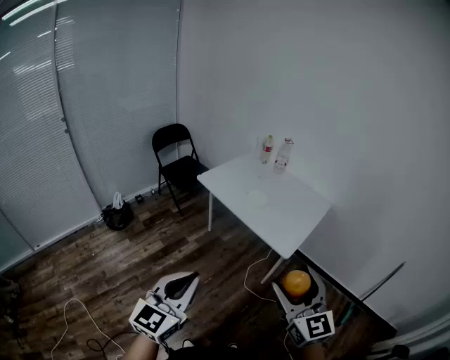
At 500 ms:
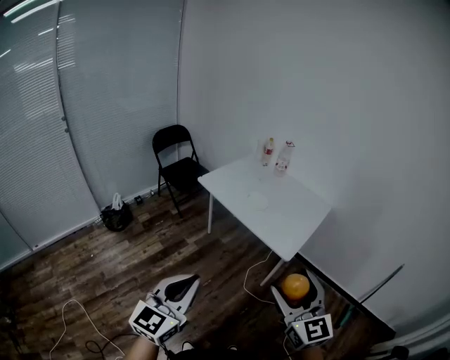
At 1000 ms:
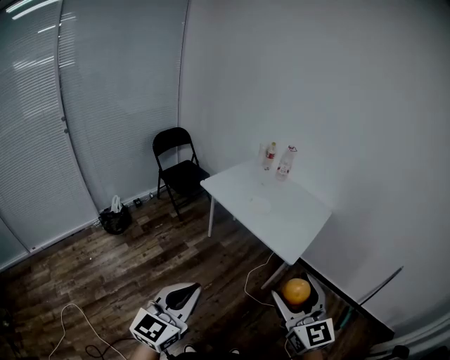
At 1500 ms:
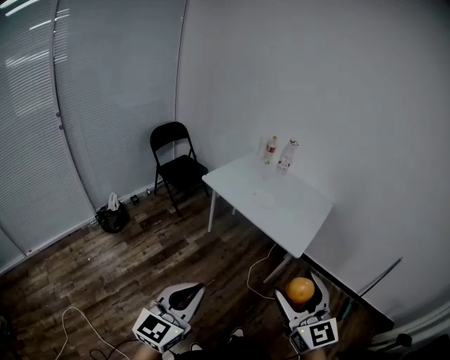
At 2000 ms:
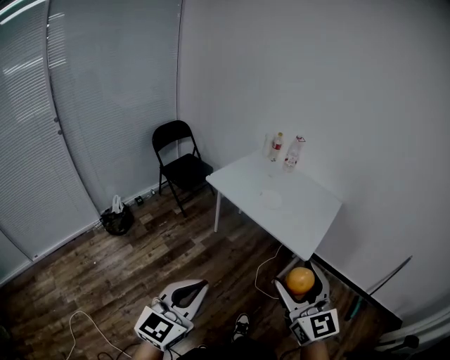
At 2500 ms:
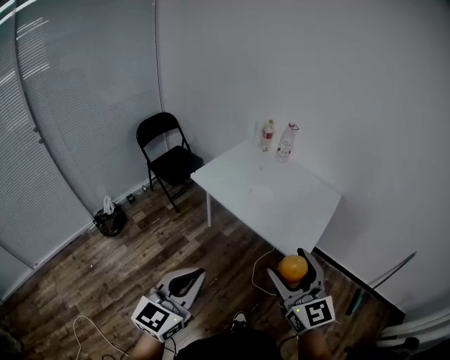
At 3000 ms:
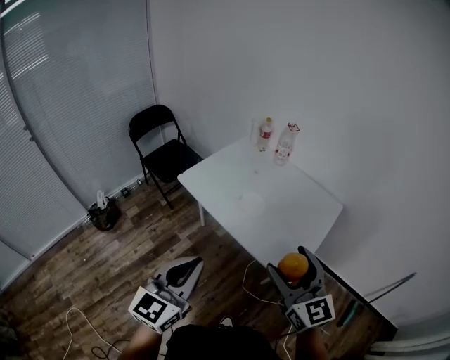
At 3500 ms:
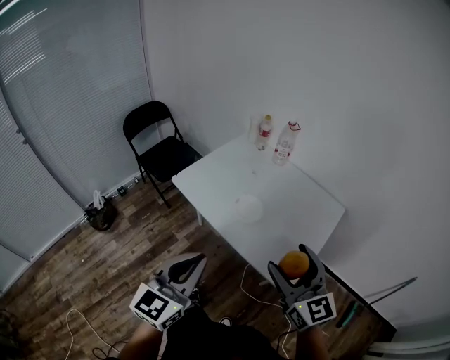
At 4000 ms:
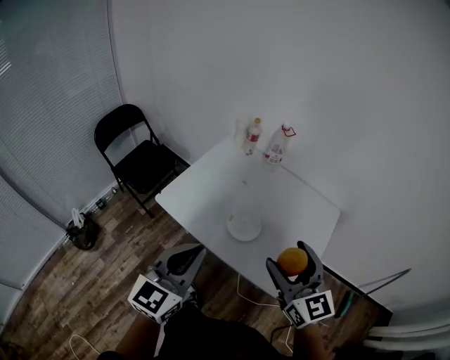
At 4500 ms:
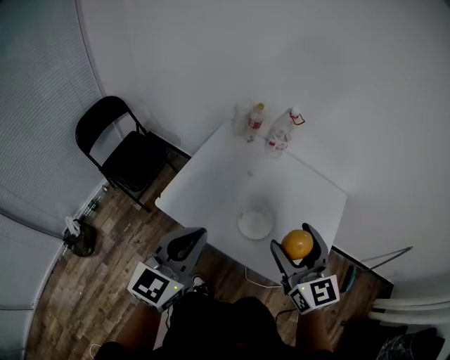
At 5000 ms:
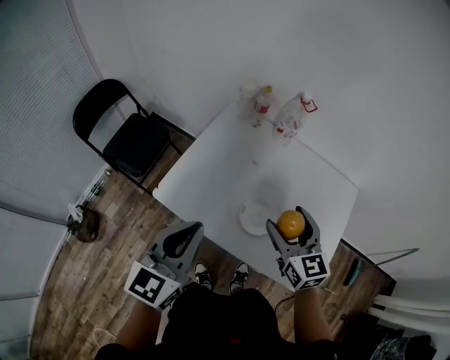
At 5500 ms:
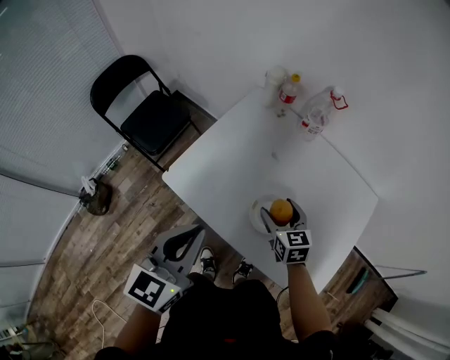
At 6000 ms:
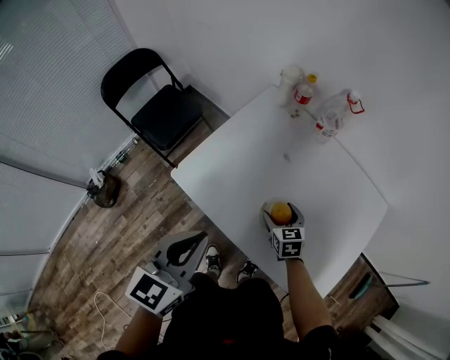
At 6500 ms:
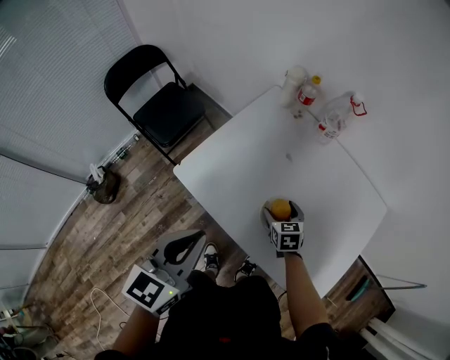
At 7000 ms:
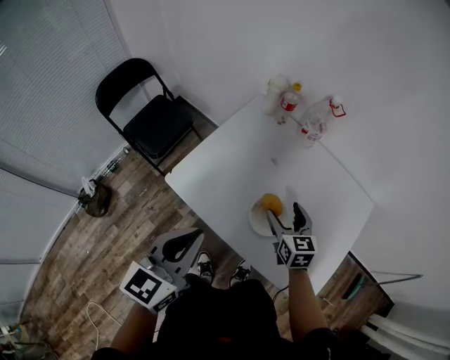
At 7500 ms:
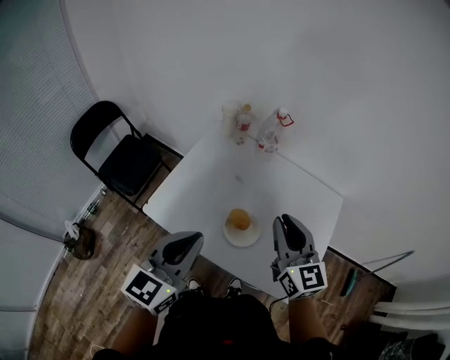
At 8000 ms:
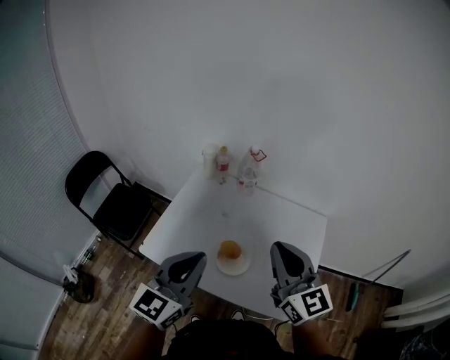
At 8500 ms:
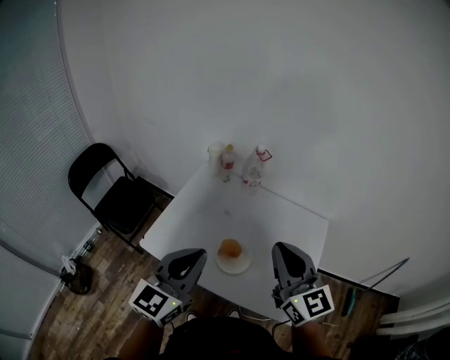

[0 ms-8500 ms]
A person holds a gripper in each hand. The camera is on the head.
0 ms to 2000 ms: The grippers both shift to the left by some 10 cm.
2000 ms to 4000 ms: The pair of grippers is taken forward, approximately 50 cm.
4000 ms to 6500 ms: The right gripper is displaced downward and forward by some 50 cm, and tips its fingers downward by roughly 40 degrees; the left gripper shifts approximately 20 cm forward, downward and to the left.
6500 ms to 8500 ms: The left gripper is displaced upward and to the right by approximately 15 cm, and rotates approximately 30 degrees, while the right gripper heads upward, covering about 40 cm, tilts its fingers roughly 50 degrees upward, and closes.

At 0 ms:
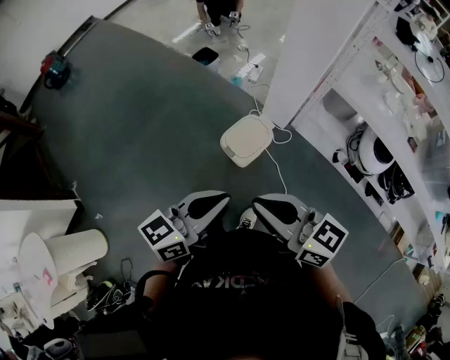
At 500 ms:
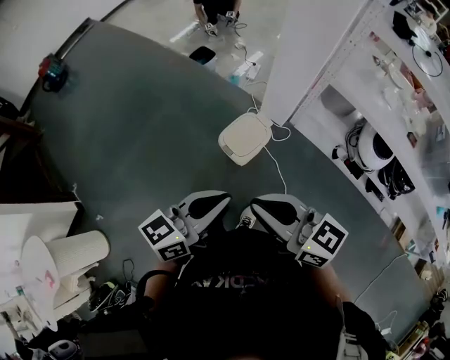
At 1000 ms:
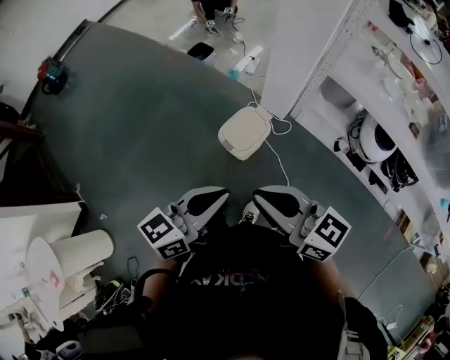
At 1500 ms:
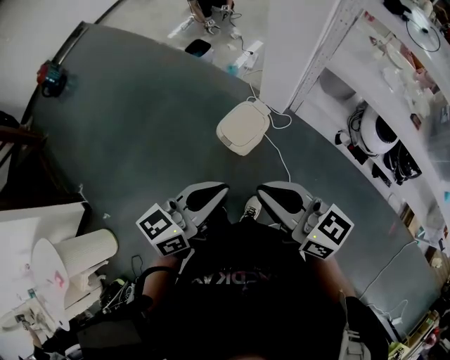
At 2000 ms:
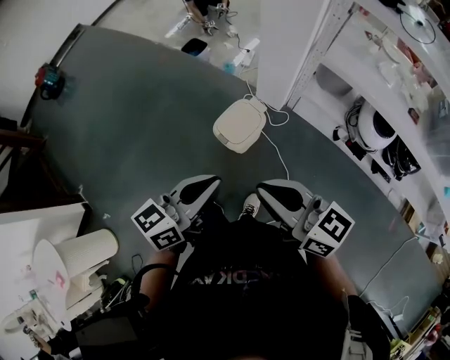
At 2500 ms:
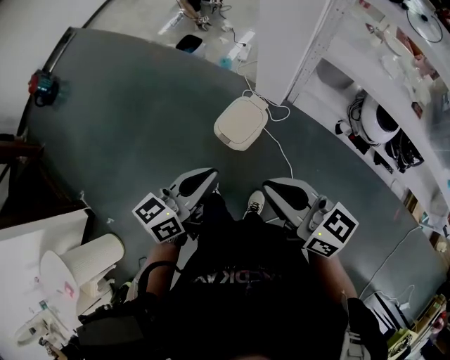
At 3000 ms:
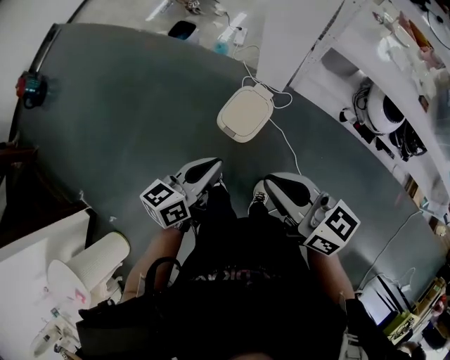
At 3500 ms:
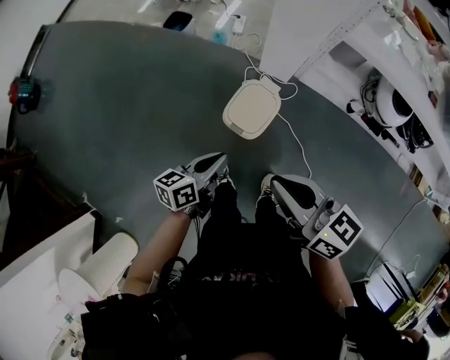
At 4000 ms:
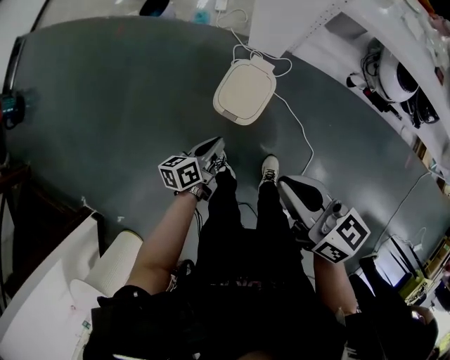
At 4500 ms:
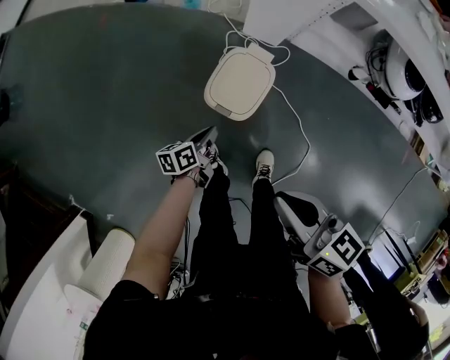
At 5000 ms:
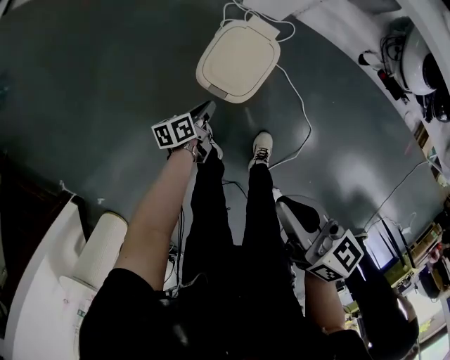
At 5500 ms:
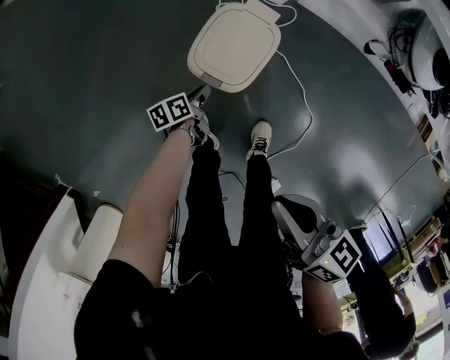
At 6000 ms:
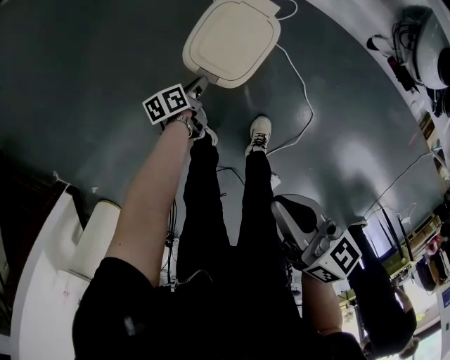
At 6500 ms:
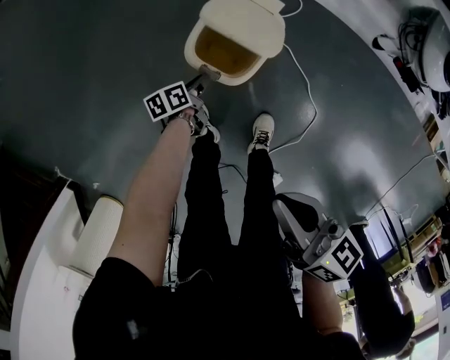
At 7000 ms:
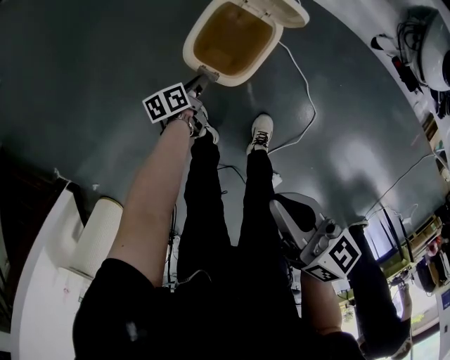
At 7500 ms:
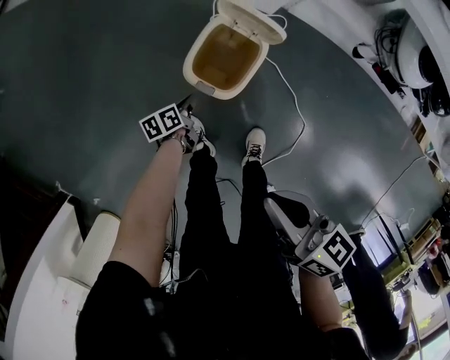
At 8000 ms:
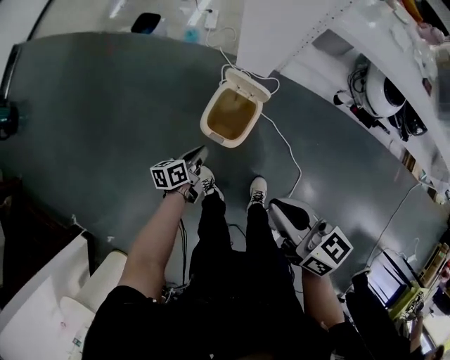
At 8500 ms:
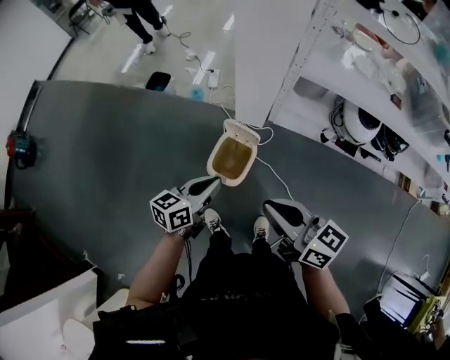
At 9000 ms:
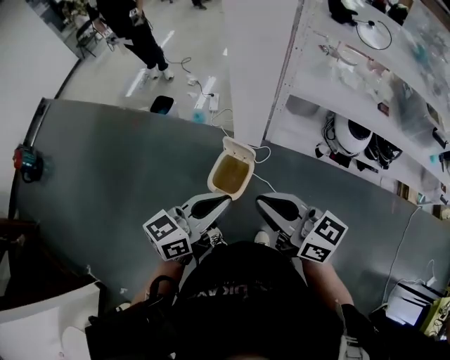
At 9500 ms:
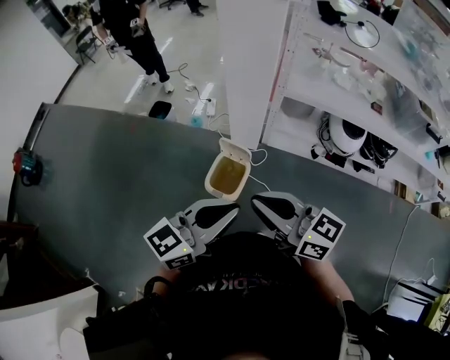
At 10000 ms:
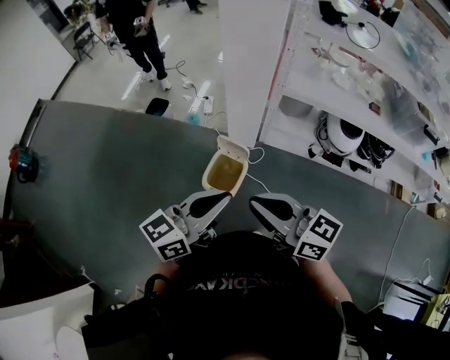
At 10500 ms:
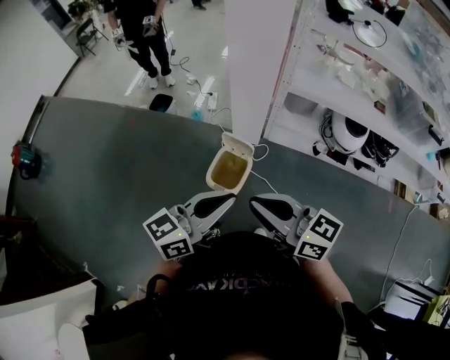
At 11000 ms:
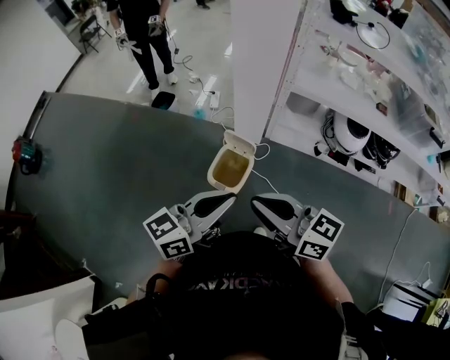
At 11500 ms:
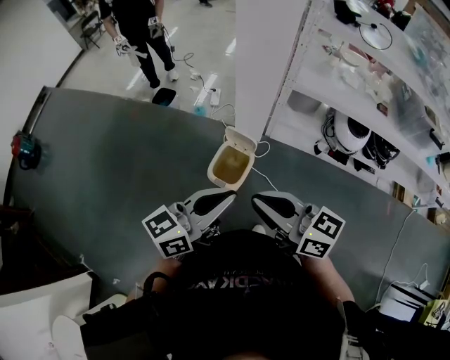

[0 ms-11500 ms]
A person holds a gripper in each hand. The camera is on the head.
0 ms to 2000 ms: The right gripper moves to the right, about 5 cm.
2000 ms to 4000 ms: The right gripper travels downward, forward and to the left by some 20 cm, and turns by about 30 degrees. The left gripper heads downward and forward, covering approximately 40 cm, and rotates roughly 30 degrees.
4000 ms to 6000 ms: The right gripper goes some 20 cm downward, while the left gripper shifts about 30 cm downward, and rotates about 30 degrees.
6000 ms to 7500 ms: The left gripper moves approximately 5 cm.
7500 ms to 9500 ms: The right gripper heads upward, covering roughly 30 cm, and swivels approximately 40 degrees. The left gripper moves upward, roughly 70 cm, and tips its fingers upward by about 40 degrees.
9500 ms to 11500 ms: The grippers stay close to where they were, moving slightly.

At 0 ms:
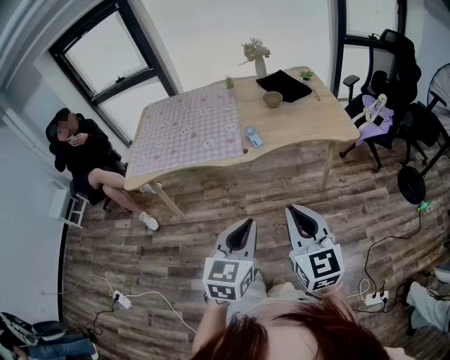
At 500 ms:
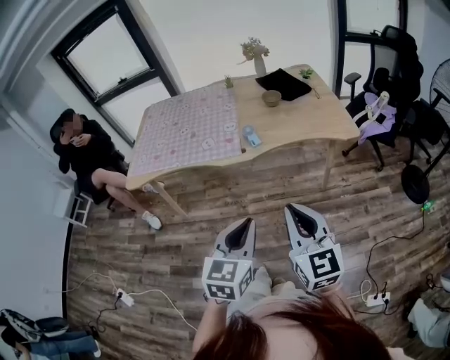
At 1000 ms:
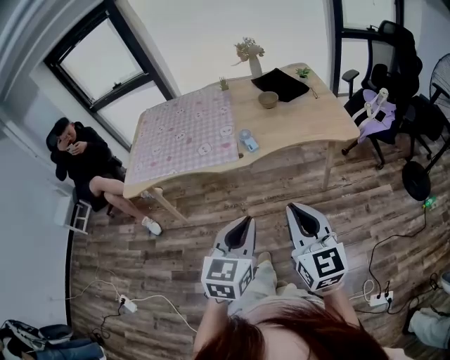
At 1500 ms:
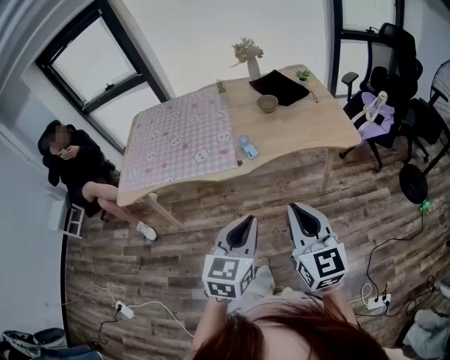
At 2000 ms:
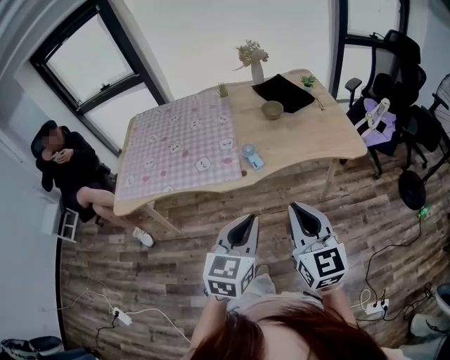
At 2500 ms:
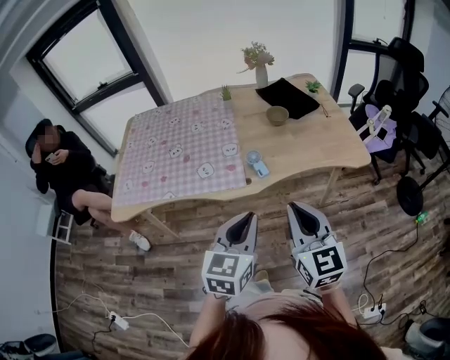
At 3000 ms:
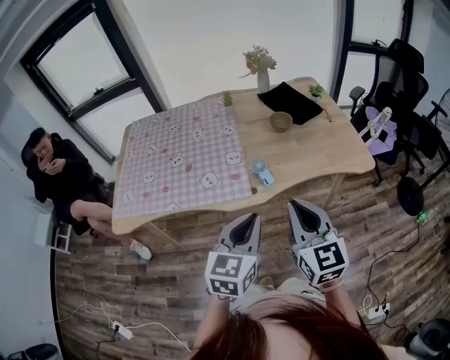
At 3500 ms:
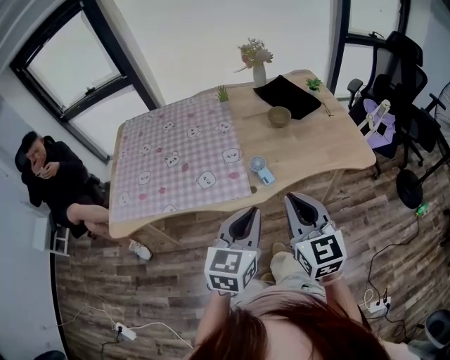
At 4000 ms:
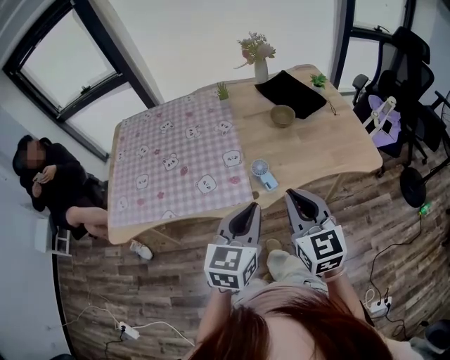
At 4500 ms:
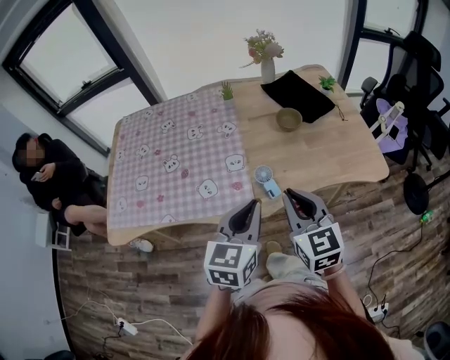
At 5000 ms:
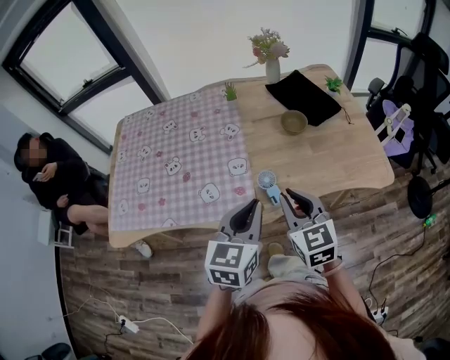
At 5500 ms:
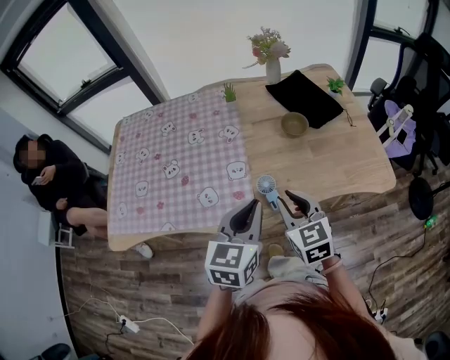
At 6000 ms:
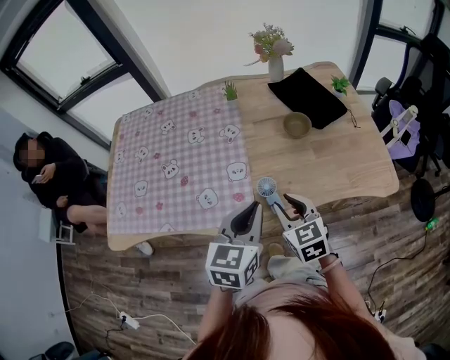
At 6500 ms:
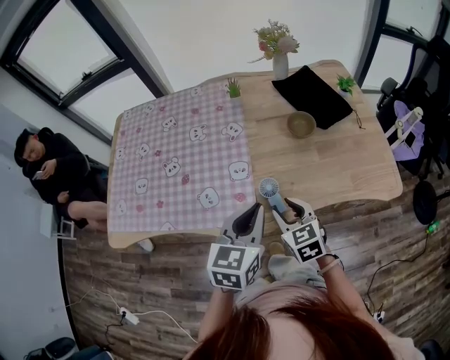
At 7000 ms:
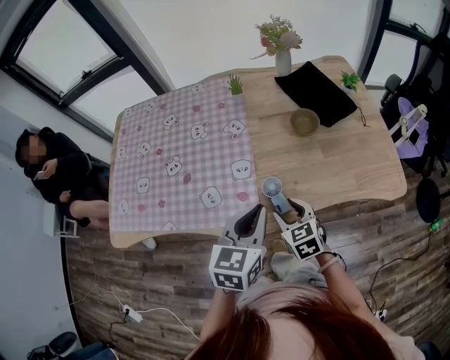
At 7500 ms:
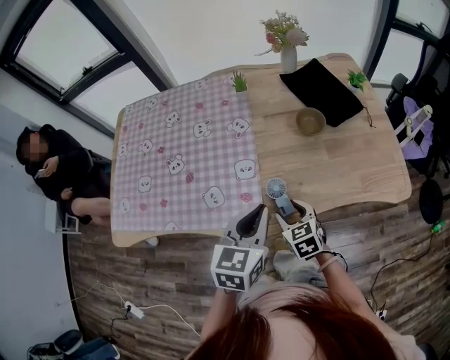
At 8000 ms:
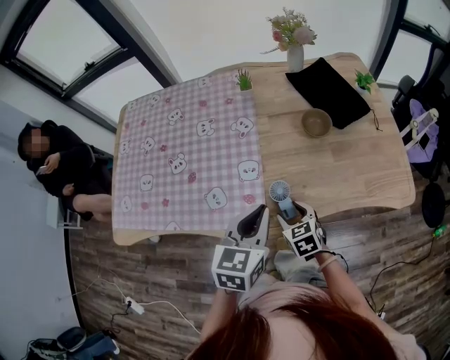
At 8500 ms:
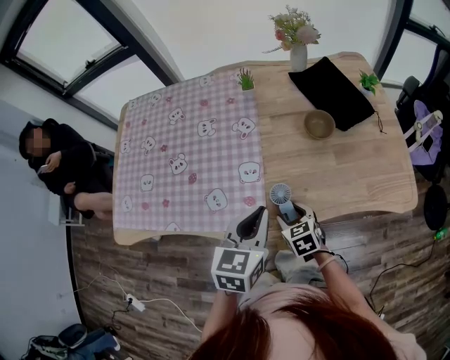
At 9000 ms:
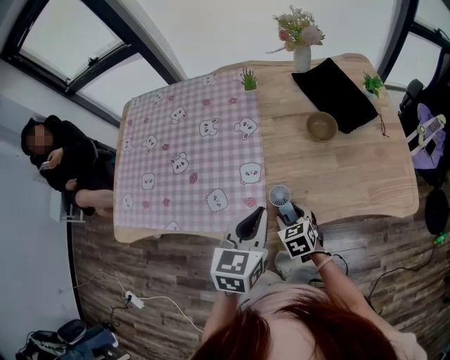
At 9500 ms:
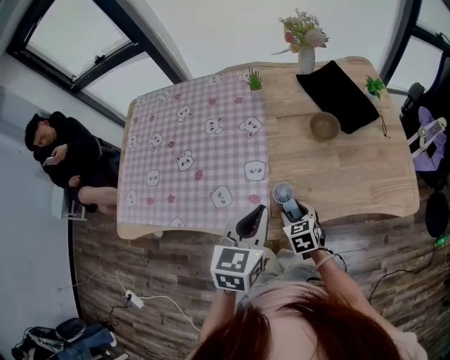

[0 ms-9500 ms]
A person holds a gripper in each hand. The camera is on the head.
0 ms to 2000 ms: Both grippers travel together forward, roughly 15 cm.
2000 ms to 4000 ms: The right gripper shifts about 20 cm forward and to the left, while the left gripper shifts some 20 cm forward.
4000 ms to 5500 ms: The right gripper heads forward and downward, covering approximately 15 cm, and opens its fingers; the left gripper goes roughly 10 cm forward.
5500 ms to 7500 ms: The right gripper travels downward by about 15 cm, and opens. The left gripper changes place by approximately 5 cm.
7500 ms to 9500 ms: The right gripper ends up roughly 5 cm from where it was.
